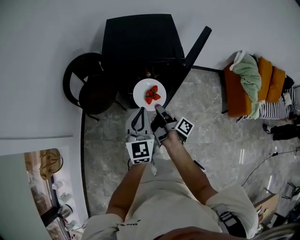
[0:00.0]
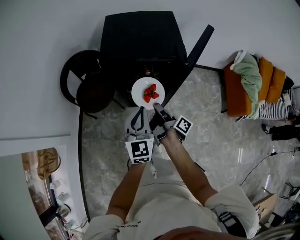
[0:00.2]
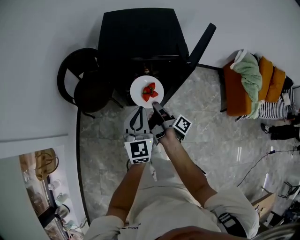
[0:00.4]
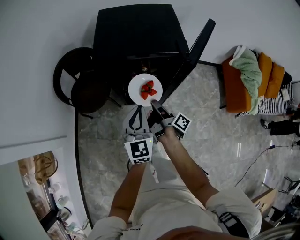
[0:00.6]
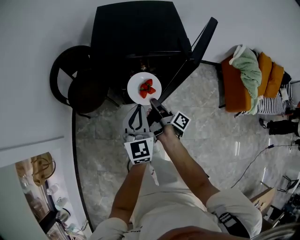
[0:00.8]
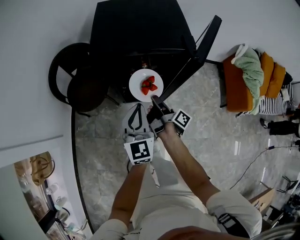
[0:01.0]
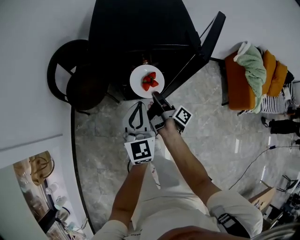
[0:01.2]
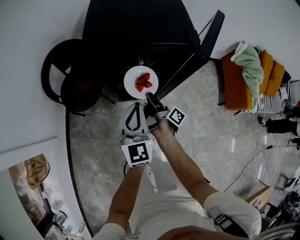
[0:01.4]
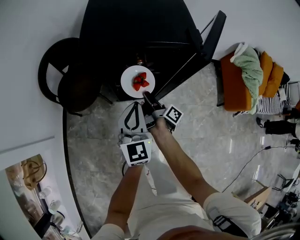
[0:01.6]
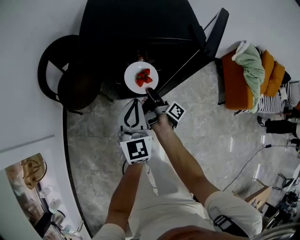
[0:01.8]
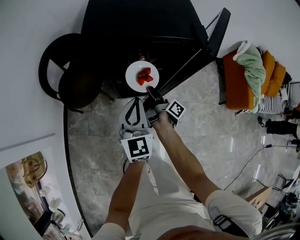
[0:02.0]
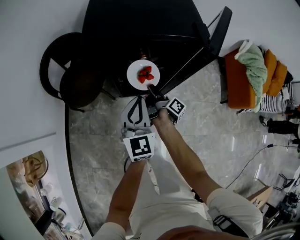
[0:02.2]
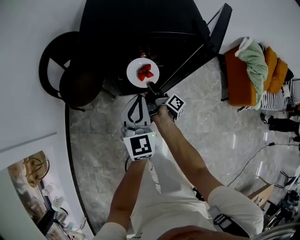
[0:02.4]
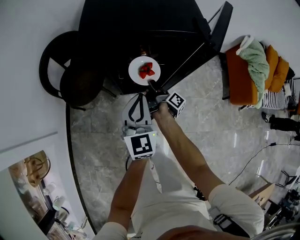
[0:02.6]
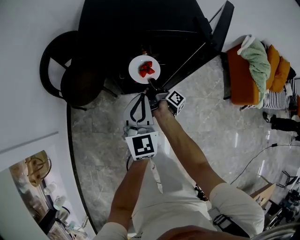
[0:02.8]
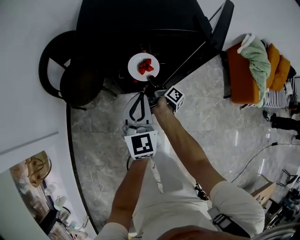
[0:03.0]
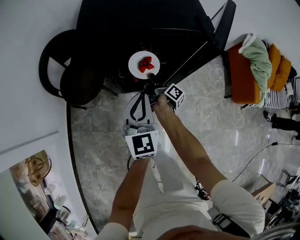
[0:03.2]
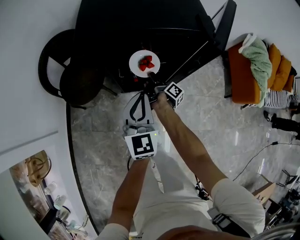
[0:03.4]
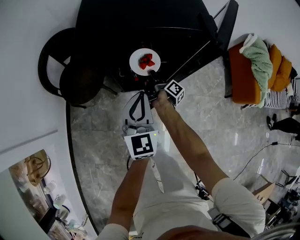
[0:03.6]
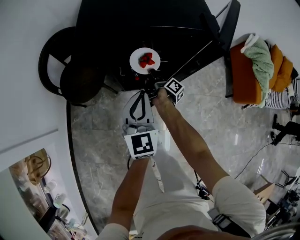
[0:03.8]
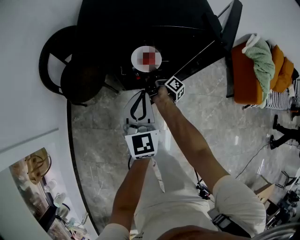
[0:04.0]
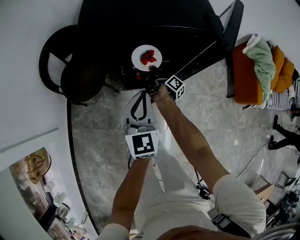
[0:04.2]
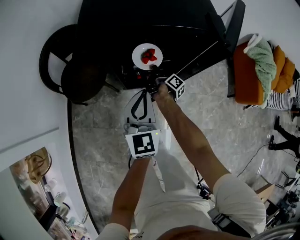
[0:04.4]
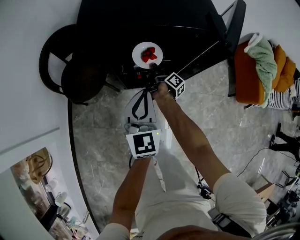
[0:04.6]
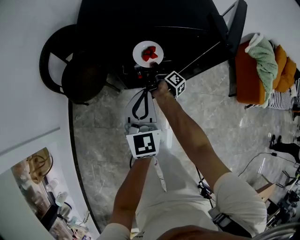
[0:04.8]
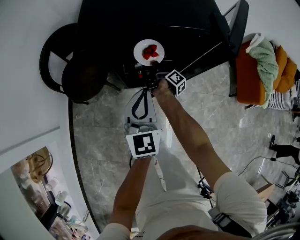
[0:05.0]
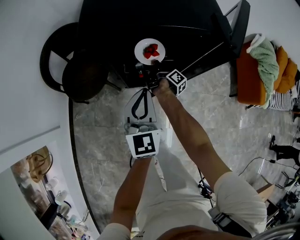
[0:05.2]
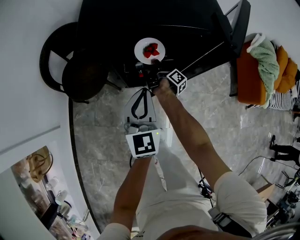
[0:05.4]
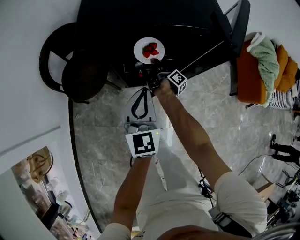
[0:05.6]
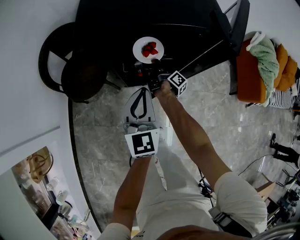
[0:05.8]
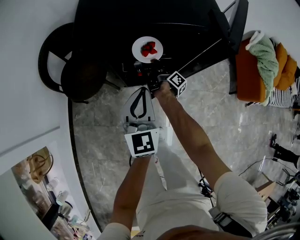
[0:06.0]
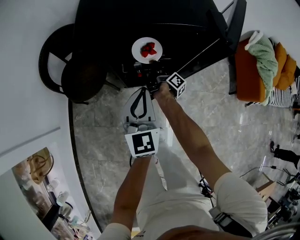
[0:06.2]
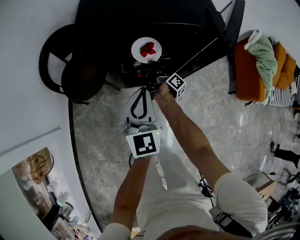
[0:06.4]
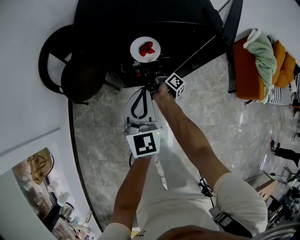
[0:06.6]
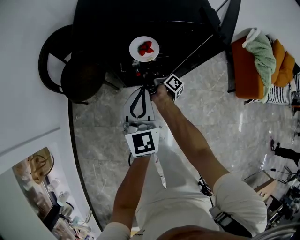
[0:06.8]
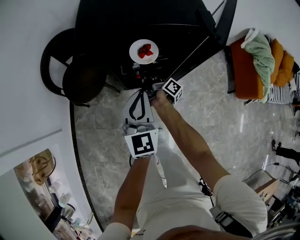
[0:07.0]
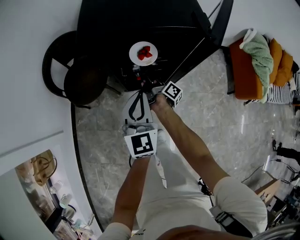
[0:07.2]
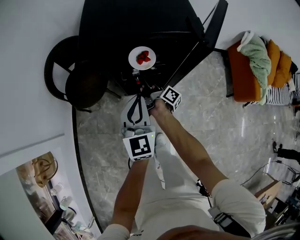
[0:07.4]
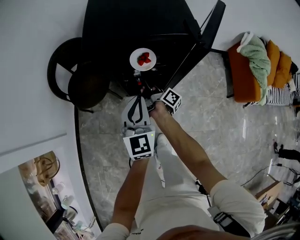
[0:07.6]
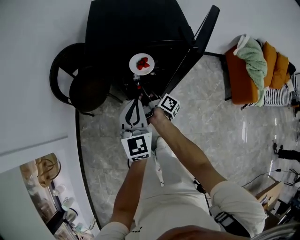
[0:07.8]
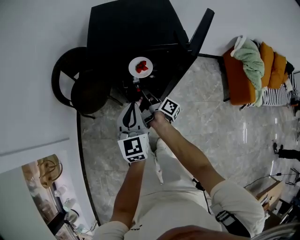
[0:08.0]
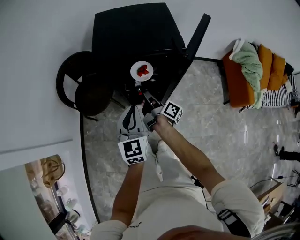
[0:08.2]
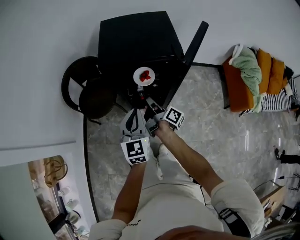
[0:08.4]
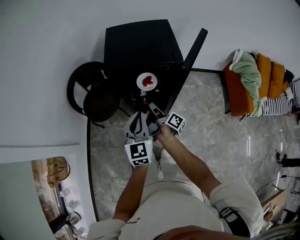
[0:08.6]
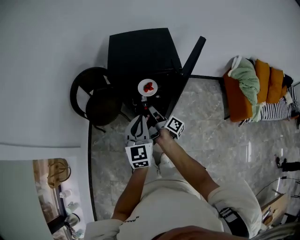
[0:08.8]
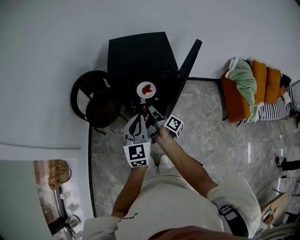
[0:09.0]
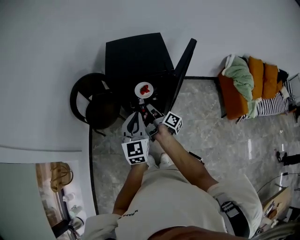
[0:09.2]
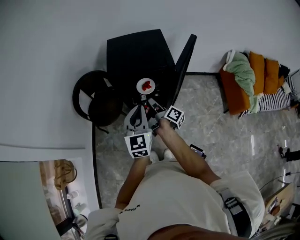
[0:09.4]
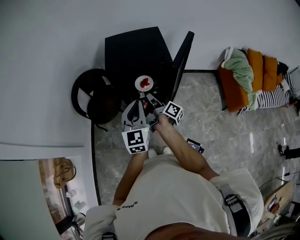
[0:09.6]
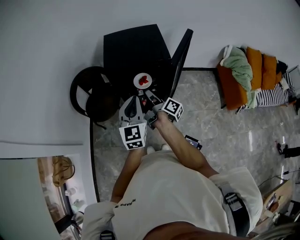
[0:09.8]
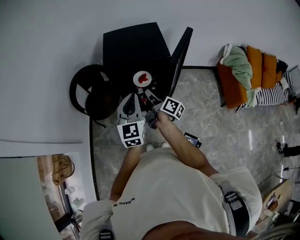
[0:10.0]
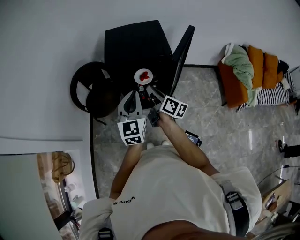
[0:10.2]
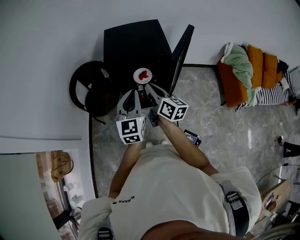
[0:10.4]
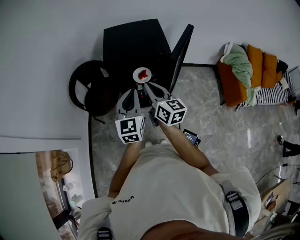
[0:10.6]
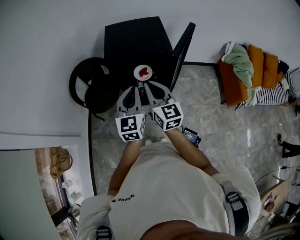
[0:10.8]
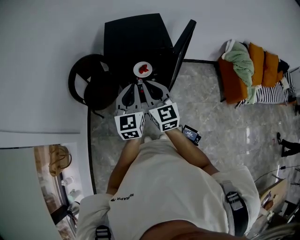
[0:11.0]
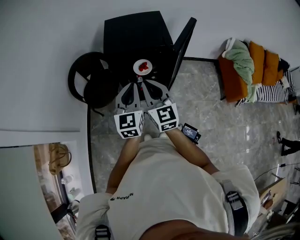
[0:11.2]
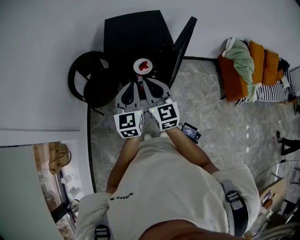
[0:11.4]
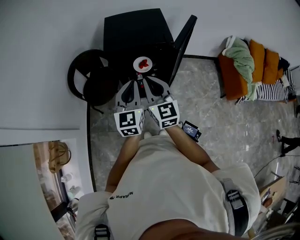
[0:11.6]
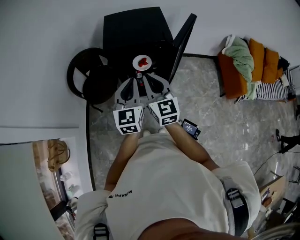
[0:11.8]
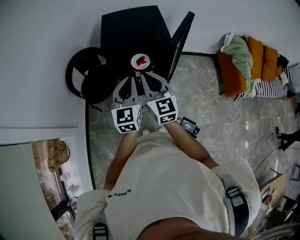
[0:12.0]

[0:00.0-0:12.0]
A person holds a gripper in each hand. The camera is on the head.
0:00.0 to 0:01.6: The left gripper moves downward, approximately 10 cm.
0:06.0 to 0:07.6: The left gripper heads upward, covering some 5 cm.
0:07.6 to 0:09.0: The left gripper is displaced upward by roughly 15 cm.

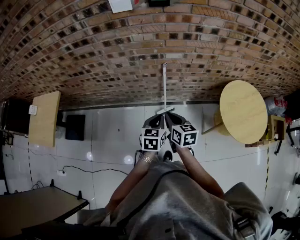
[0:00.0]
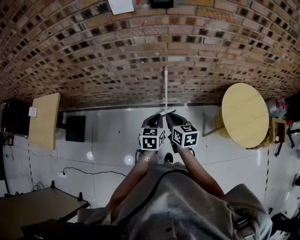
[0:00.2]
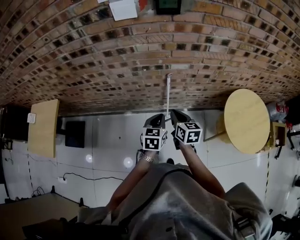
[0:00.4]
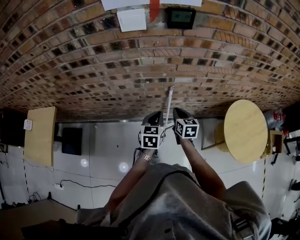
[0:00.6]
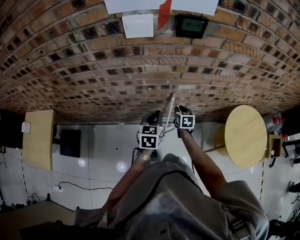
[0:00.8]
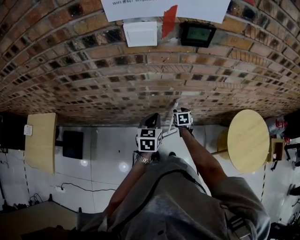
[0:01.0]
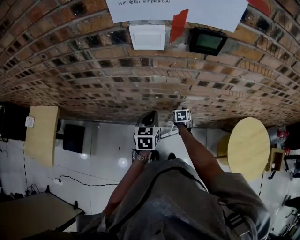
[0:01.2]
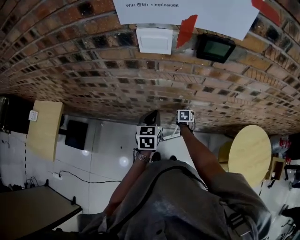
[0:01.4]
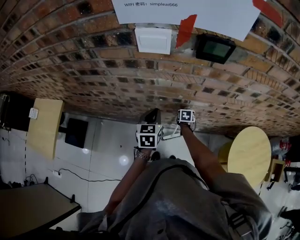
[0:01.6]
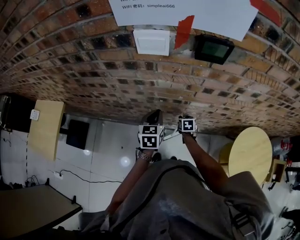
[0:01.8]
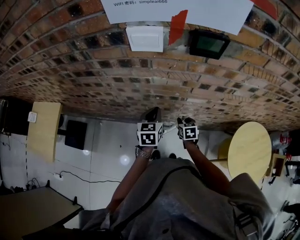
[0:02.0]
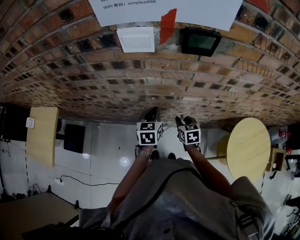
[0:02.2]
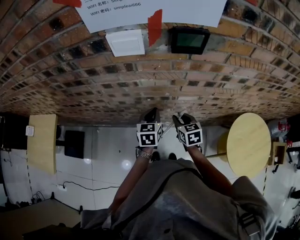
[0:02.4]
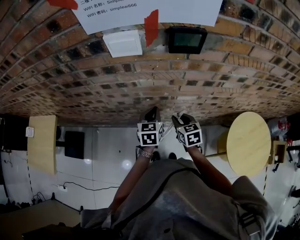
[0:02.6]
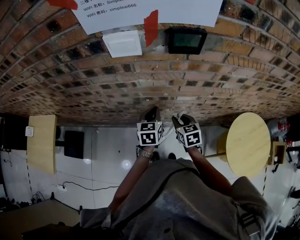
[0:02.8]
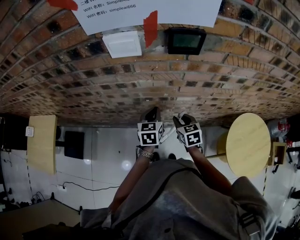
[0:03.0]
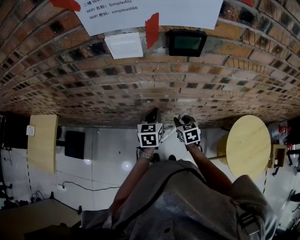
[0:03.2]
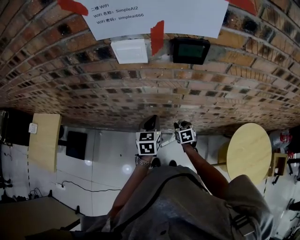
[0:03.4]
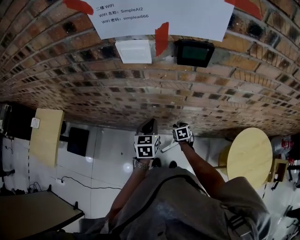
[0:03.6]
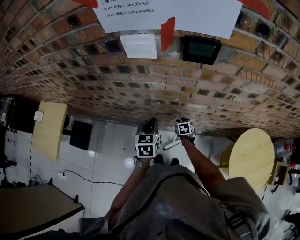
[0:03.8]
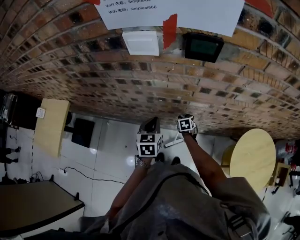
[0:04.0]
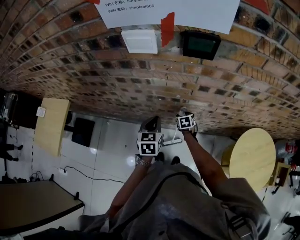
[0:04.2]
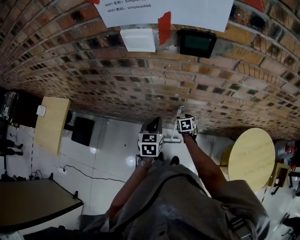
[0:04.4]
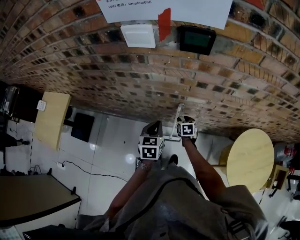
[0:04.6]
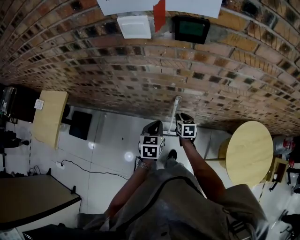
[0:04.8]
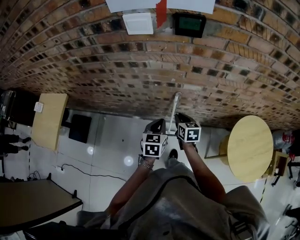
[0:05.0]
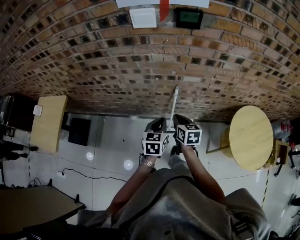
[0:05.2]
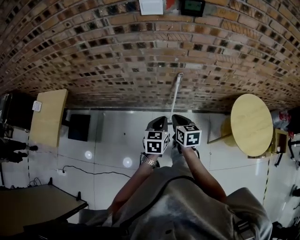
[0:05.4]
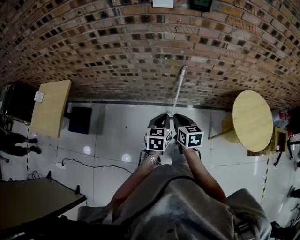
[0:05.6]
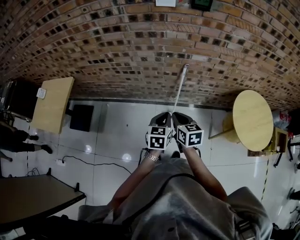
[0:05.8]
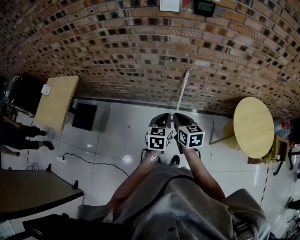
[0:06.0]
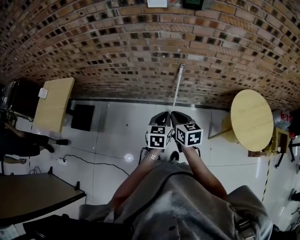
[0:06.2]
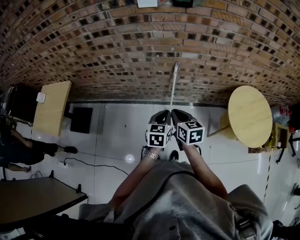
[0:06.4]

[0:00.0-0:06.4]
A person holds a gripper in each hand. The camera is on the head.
0:00.0 to 0:01.6: The right gripper is displaced forward and downward by approximately 50 cm, tips its fingers downward by roughly 30 degrees, and opens its fingers; the left gripper travels forward by roughly 30 cm.
0:01.6 to 0:03.2: The right gripper goes some 20 cm upward and backward, and rotates approximately 20 degrees. The left gripper moves to the right, roughly 5 cm.
0:03.2 to 0:04.8: The right gripper travels downward by some 5 cm, and opens and closes again. Meanwhile the left gripper moves backward, about 10 cm.
0:04.8 to 0:06.4: The left gripper is displaced backward by about 25 cm. The right gripper travels backward and upward by roughly 35 cm, and closes.

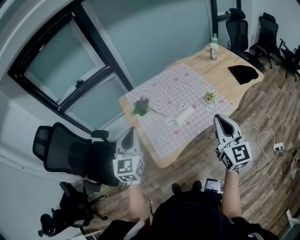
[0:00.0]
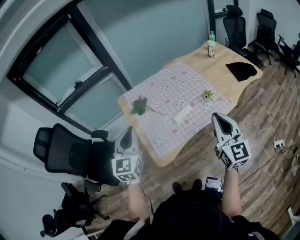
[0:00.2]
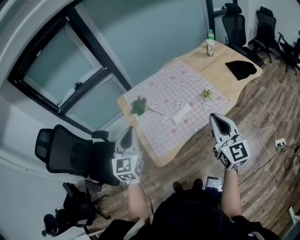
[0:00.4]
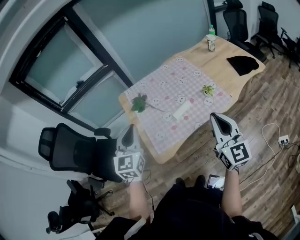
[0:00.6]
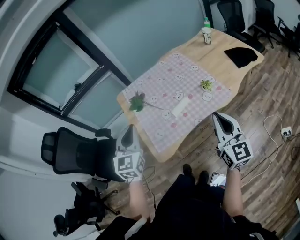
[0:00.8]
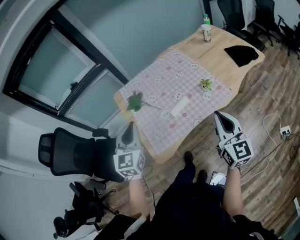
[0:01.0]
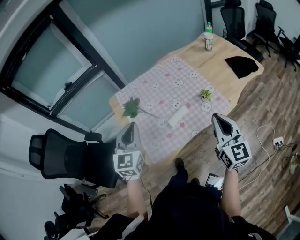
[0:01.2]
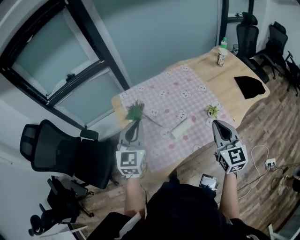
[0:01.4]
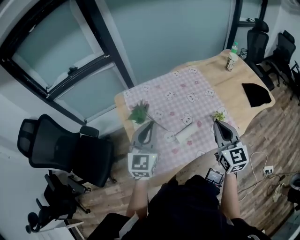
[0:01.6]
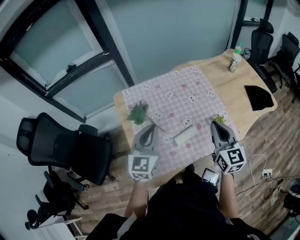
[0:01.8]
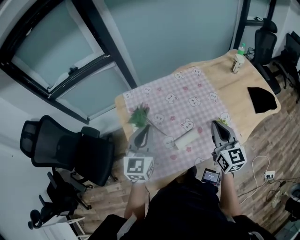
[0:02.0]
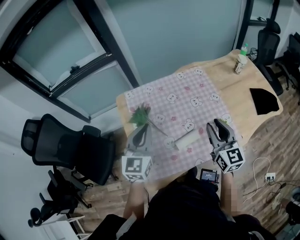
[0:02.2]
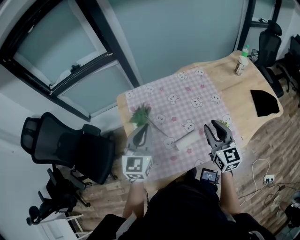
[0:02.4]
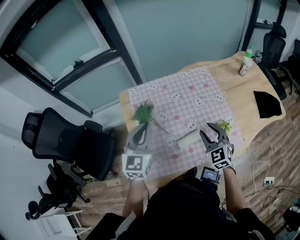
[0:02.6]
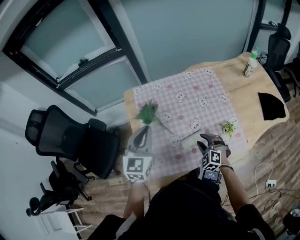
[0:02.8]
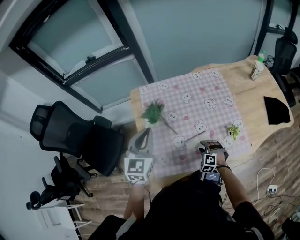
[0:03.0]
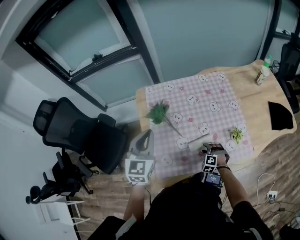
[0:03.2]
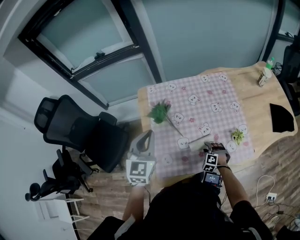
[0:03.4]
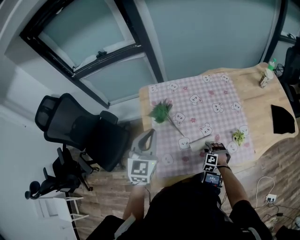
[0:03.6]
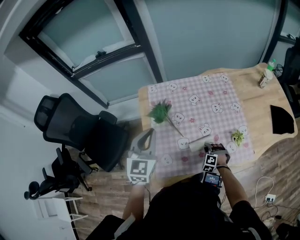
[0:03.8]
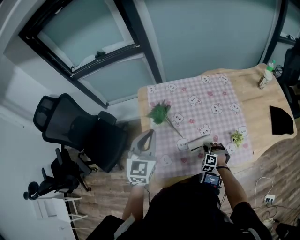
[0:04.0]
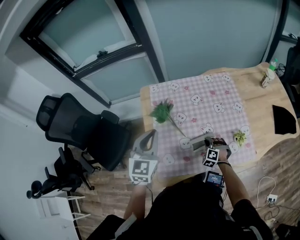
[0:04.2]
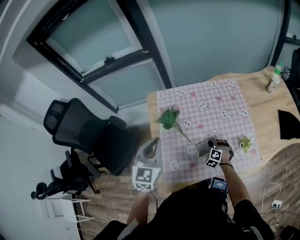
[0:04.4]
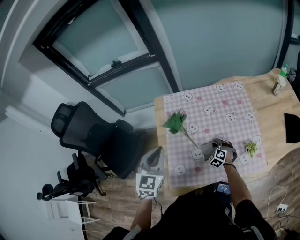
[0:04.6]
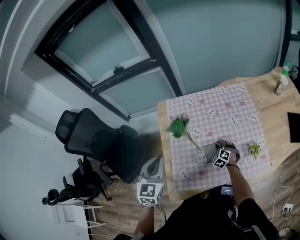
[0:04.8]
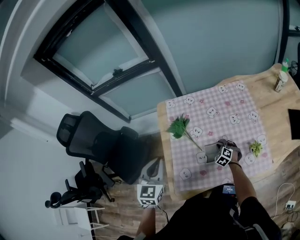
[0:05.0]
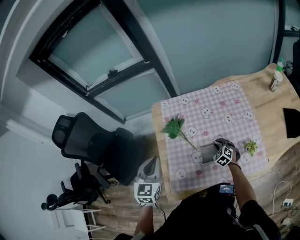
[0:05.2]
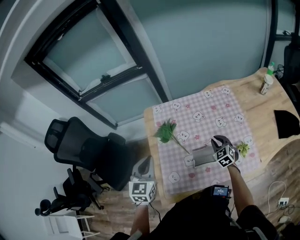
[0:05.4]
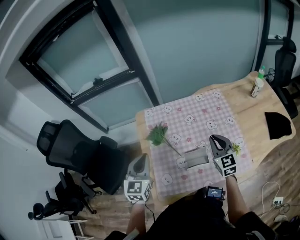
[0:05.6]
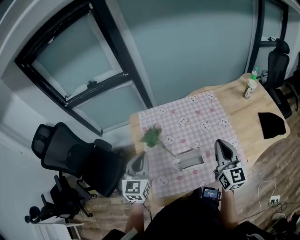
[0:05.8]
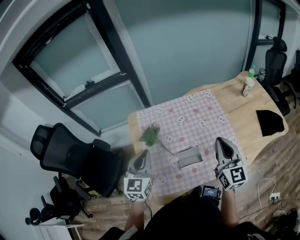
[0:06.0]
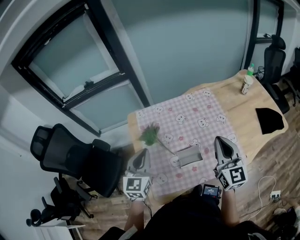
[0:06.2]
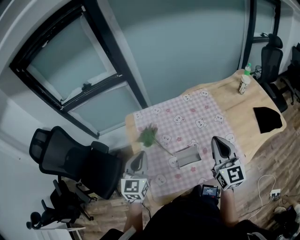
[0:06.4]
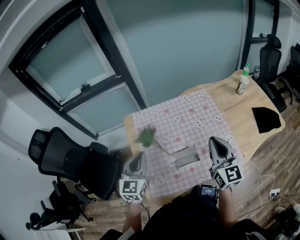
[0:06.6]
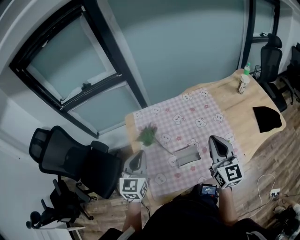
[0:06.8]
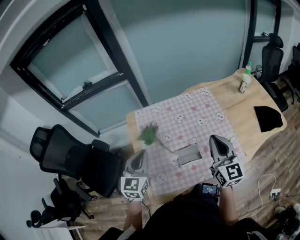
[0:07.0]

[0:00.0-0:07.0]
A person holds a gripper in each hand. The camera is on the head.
0:00.0 to 0:01.4: Both grippers move forward, about 15 cm.
0:01.4 to 0:02.8: The right gripper shifts about 30 cm downward and forward, angles its fingers downward, by some 40 degrees, and opens its fingers; the left gripper shifts approximately 5 cm forward.
0:02.8 to 0:04.2: The right gripper is displaced downward by roughly 10 cm, and closes up.
0:04.2 to 0:05.6: The right gripper goes roughly 25 cm upward, and twists some 50 degrees clockwise, seen from behind.
0:05.6 to 0:07.0: The right gripper travels upward and backward by roughly 15 cm.
